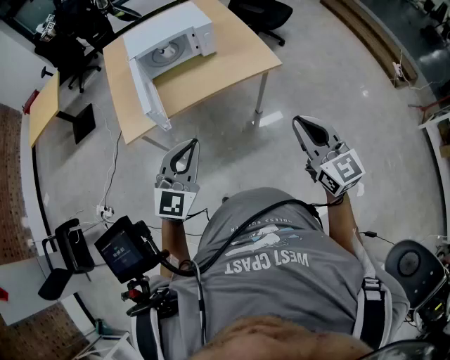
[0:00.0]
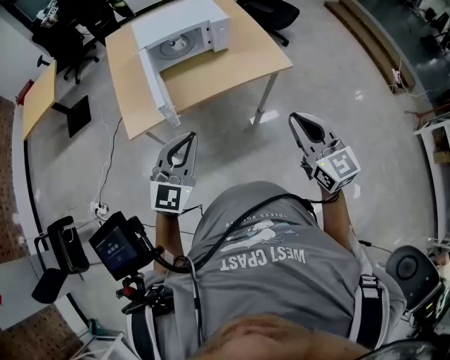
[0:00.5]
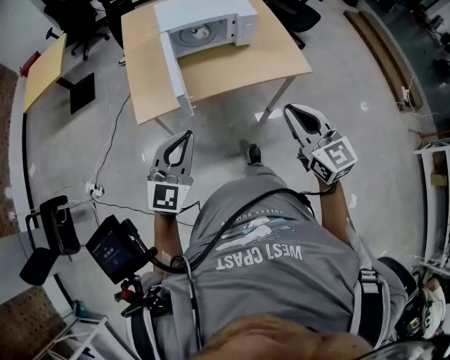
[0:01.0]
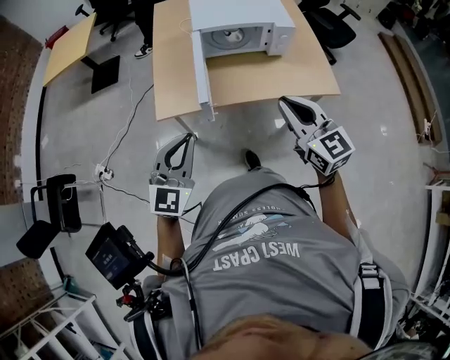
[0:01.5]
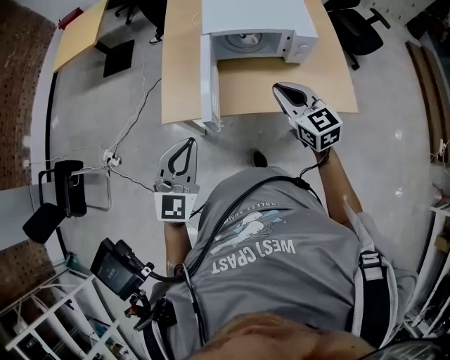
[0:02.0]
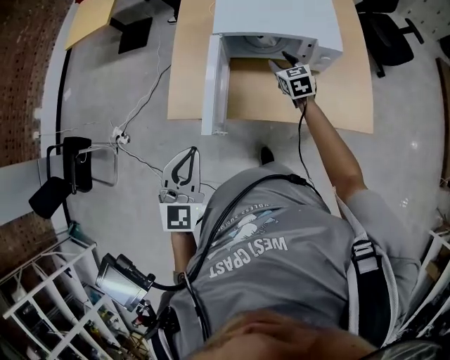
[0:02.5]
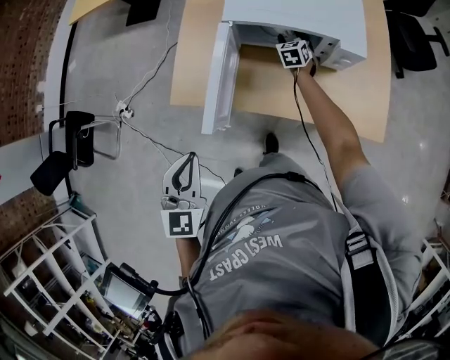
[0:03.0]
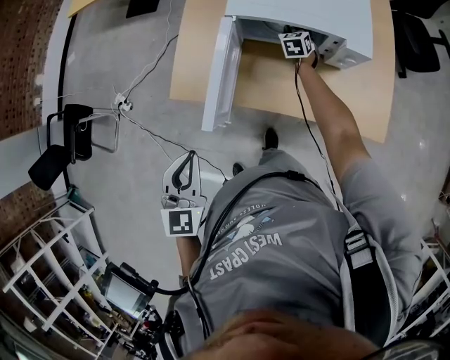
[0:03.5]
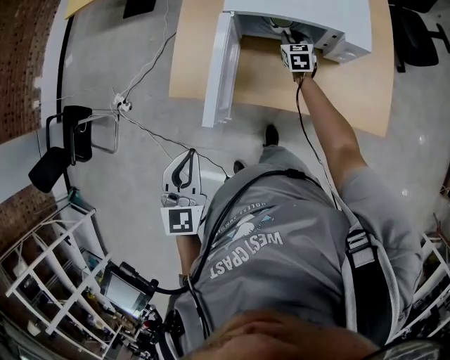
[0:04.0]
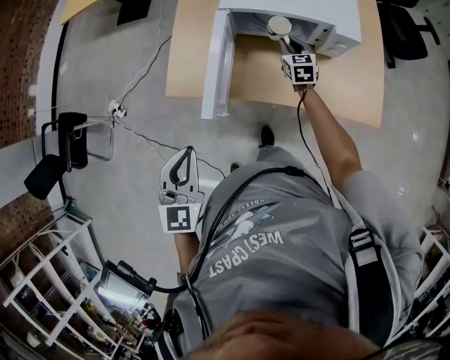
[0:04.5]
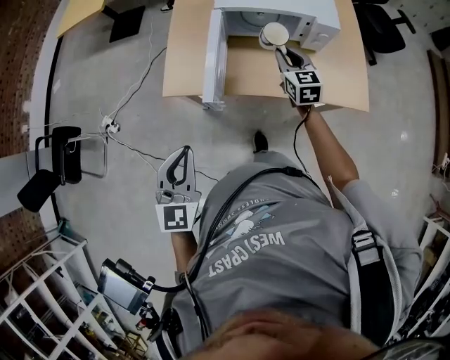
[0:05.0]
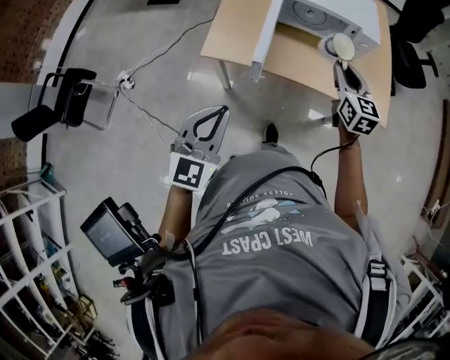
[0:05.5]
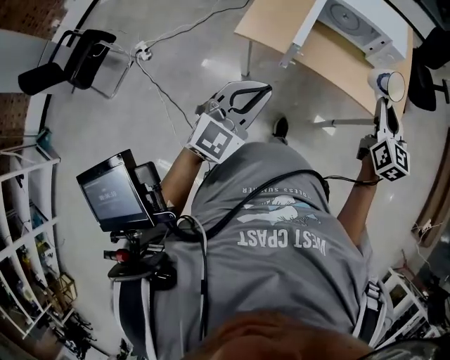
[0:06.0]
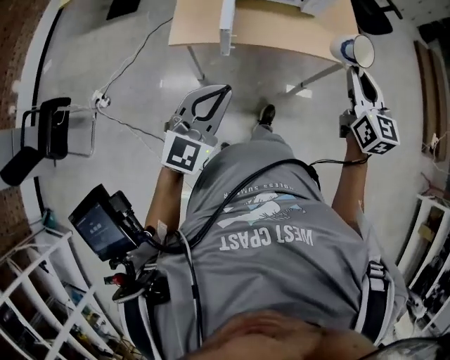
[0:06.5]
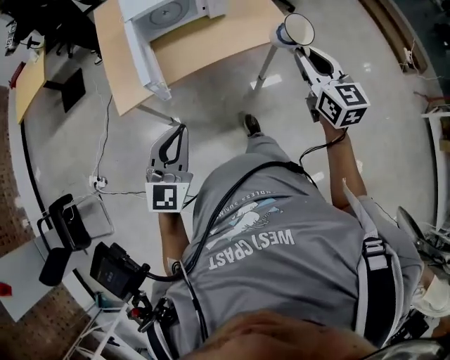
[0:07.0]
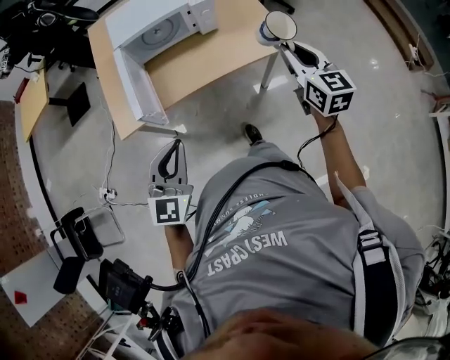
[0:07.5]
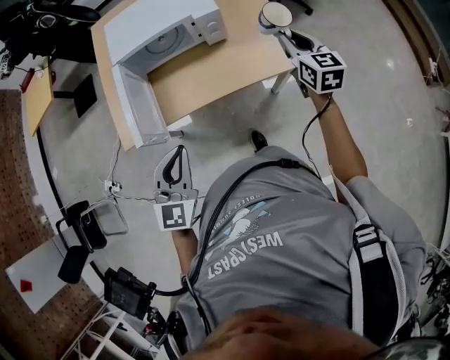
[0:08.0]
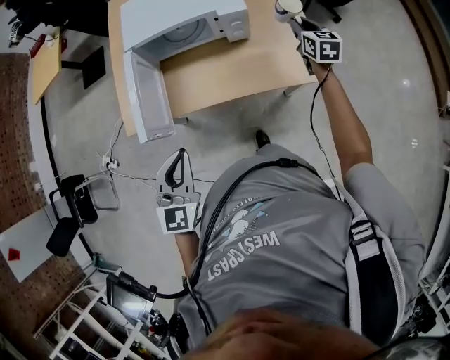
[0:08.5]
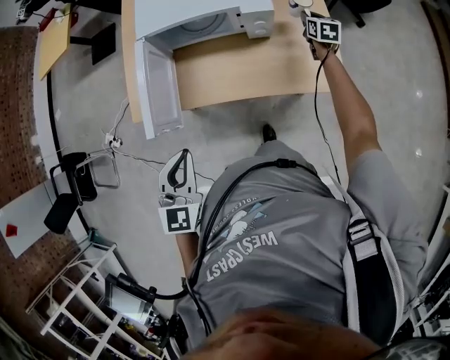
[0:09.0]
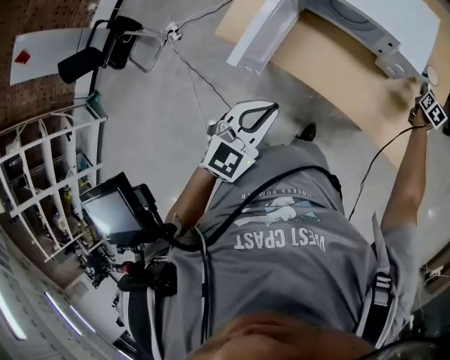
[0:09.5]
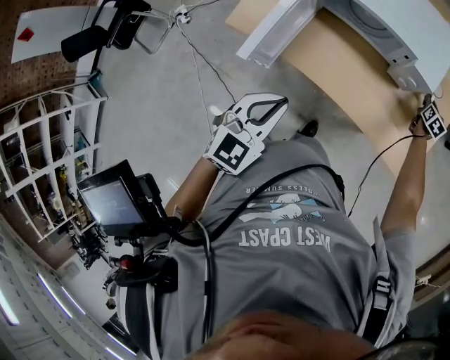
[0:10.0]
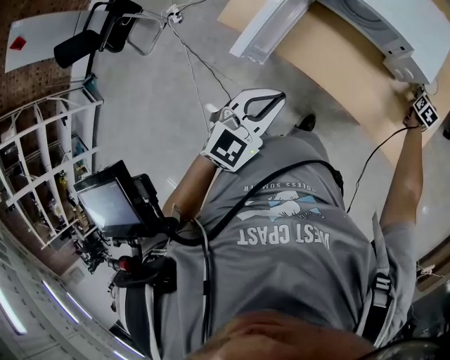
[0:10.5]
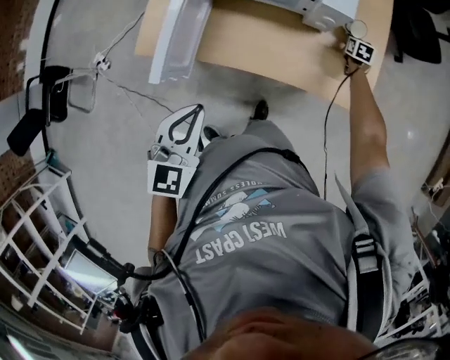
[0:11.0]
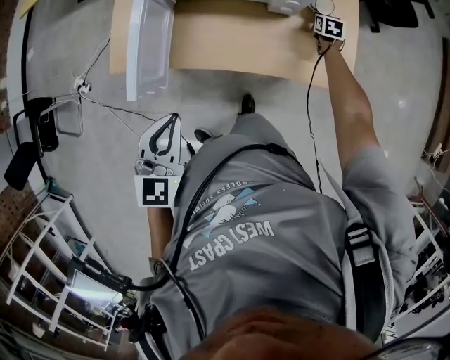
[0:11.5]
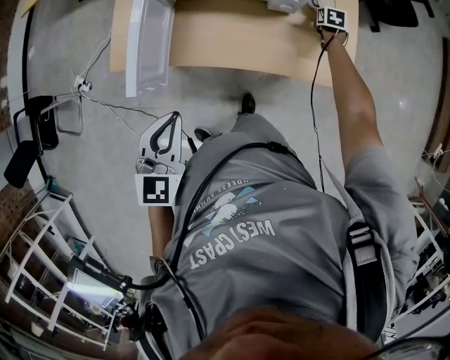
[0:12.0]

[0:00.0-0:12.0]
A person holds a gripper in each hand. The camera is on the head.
0:00.0 to 0:02.0: The left gripper shifts by some 30 cm, and rotates some 30 degrees; the right gripper moves approximately 50 cm, and swivels roughly 30 degrees.
0:02.0 to 0:04.0: The left gripper heads forward, covering roughly 10 cm, and changes its angle by roughly 30 degrees. Meanwhile the right gripper shifts approximately 40 cm forward and downward, swivels roughly 20 degrees, and opens and closes again.
0:04.0 to 0:06.0: The left gripper moves backward, about 25 cm, and changes its angle by some 30 degrees. The right gripper goes roughly 60 cm backward and upward, and changes its angle by roughly 20 degrees.
0:06.0 to 0:08.0: The left gripper moves forward and to the right, about 30 cm. The right gripper goes roughly 40 cm to the right and forward.
0:08.0 to 0:10.0: The left gripper moves forward, about 10 cm, and turns by approximately 30 degrees. Meanwhile the right gripper goes roughly 50 cm forward and downward, and rotates roughly 30 degrees.
0:10.0 to 0:12.0: The right gripper reaches approximately 10 cm to the left, then returns.

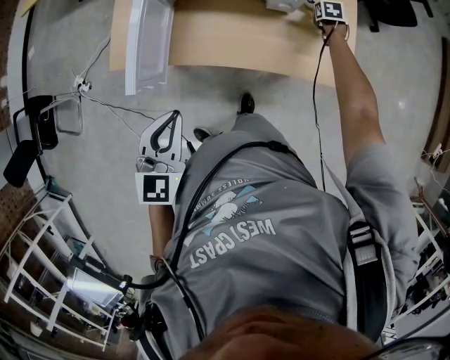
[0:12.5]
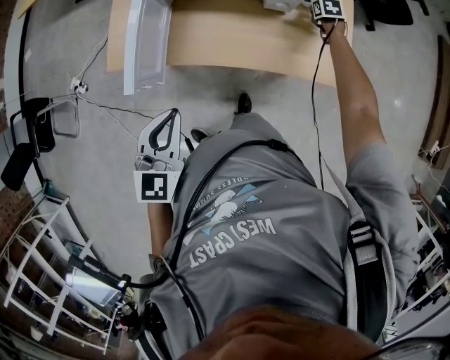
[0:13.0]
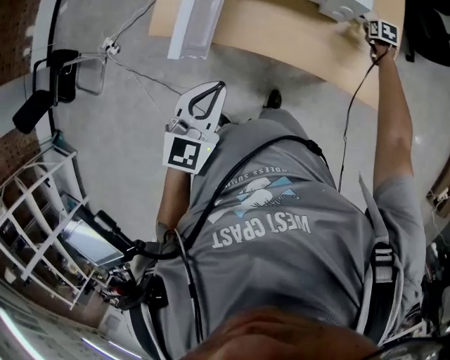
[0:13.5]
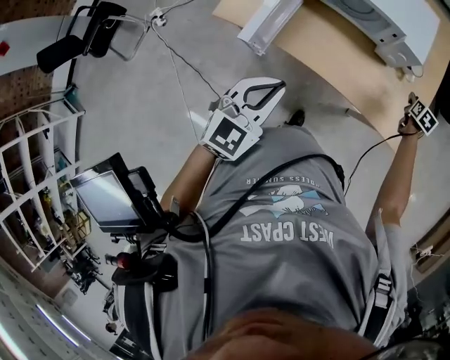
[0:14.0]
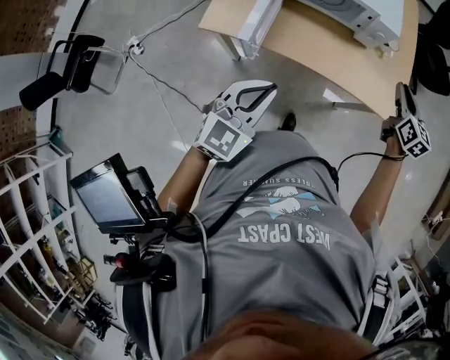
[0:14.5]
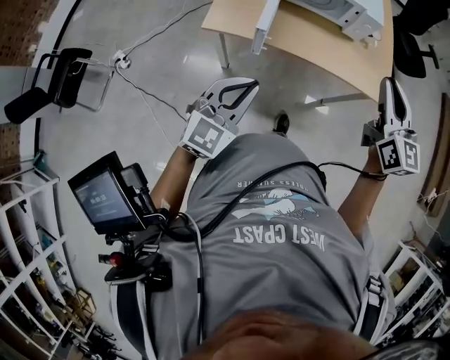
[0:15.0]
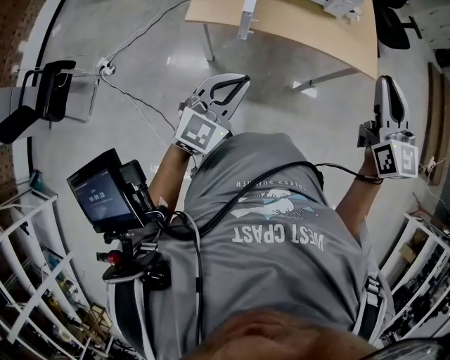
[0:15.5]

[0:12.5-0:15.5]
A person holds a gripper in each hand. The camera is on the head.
0:12.5 to 0:14.0: The right gripper shifts about 15 cm backward. Meanwhile the left gripper changes place by some 5 cm.
0:14.0 to 0:15.5: The left gripper travels backward and to the left by about 30 cm, and swivels some 20 degrees, while the right gripper goes about 70 cm backward, upward and to the left, and tips its fingers upward by approximately 50 degrees.

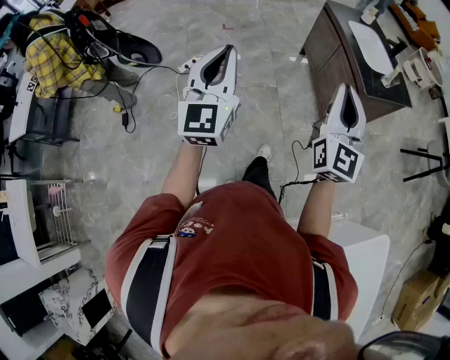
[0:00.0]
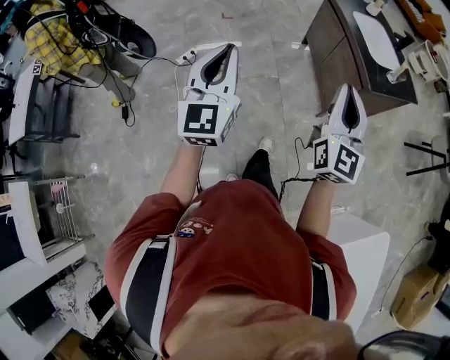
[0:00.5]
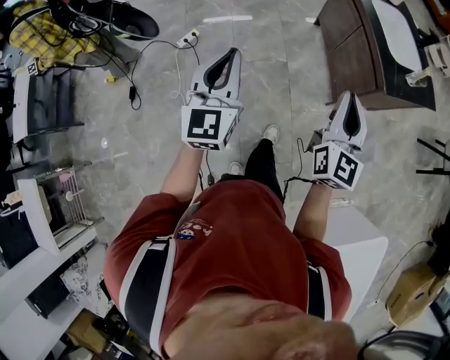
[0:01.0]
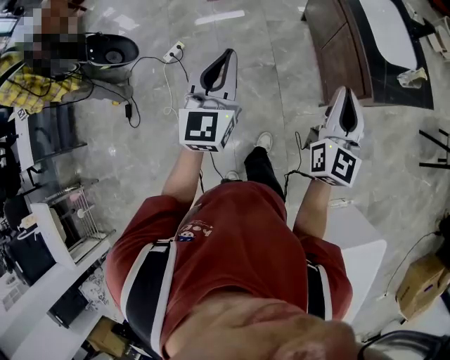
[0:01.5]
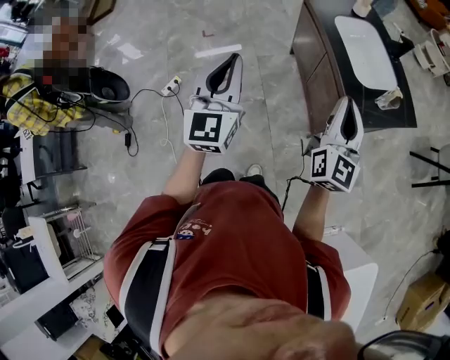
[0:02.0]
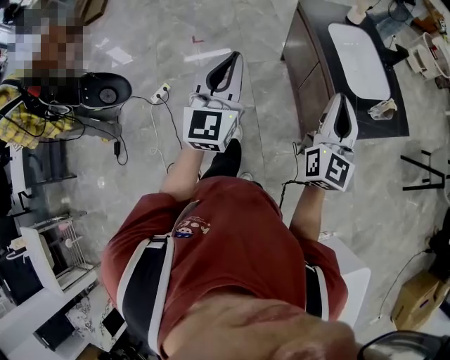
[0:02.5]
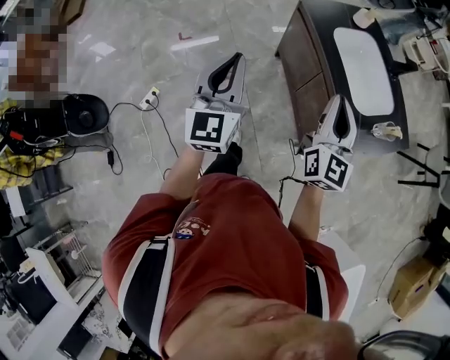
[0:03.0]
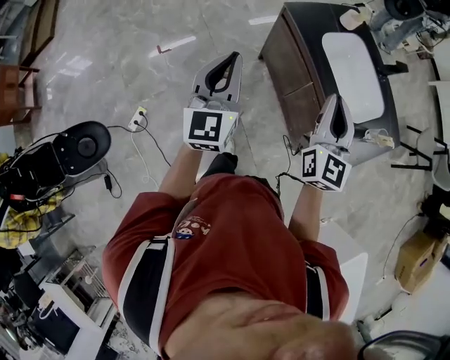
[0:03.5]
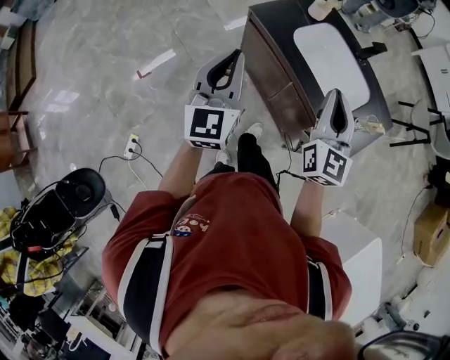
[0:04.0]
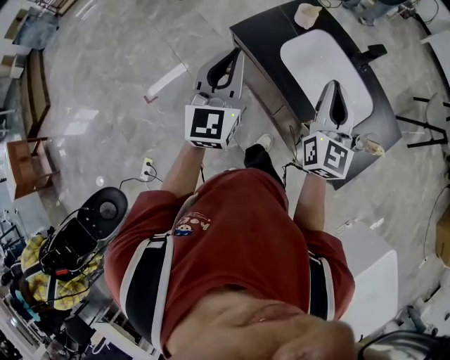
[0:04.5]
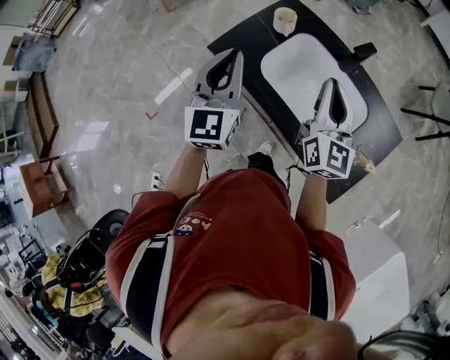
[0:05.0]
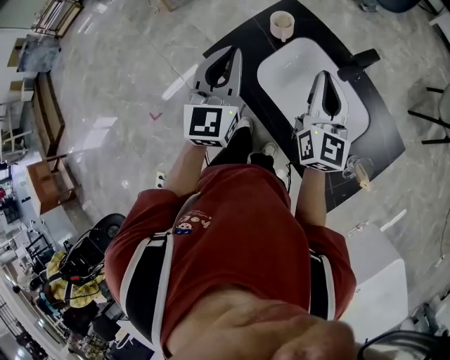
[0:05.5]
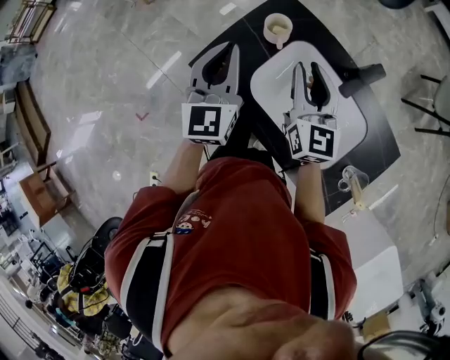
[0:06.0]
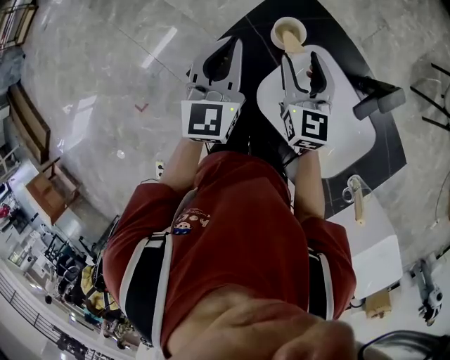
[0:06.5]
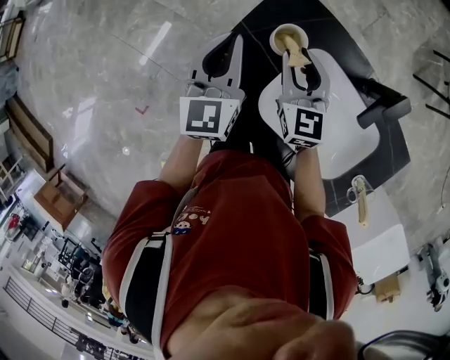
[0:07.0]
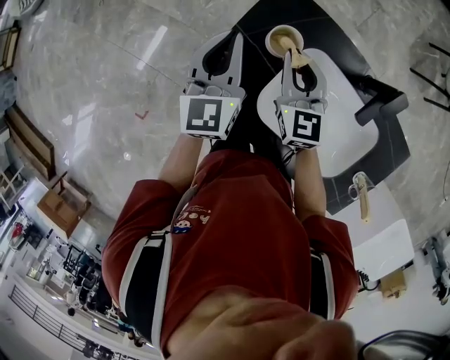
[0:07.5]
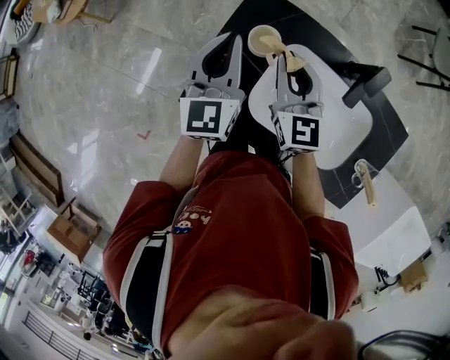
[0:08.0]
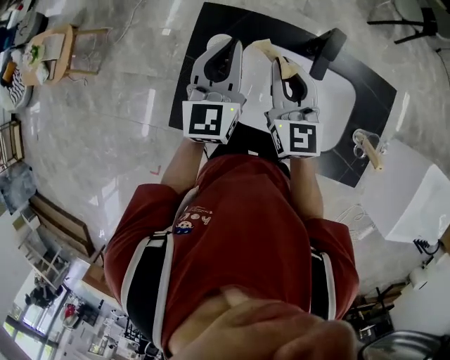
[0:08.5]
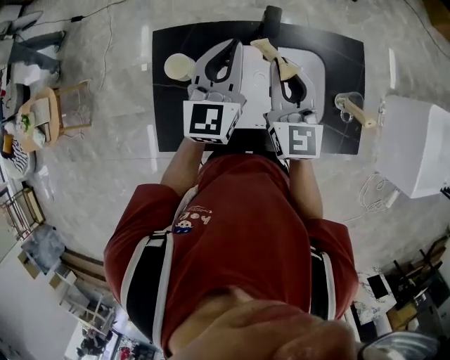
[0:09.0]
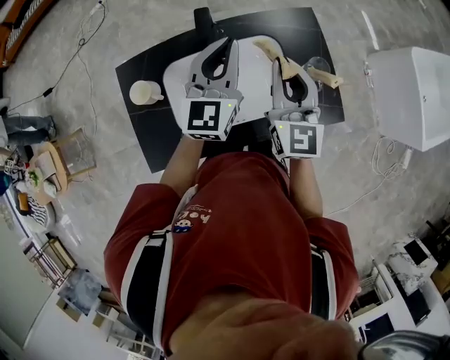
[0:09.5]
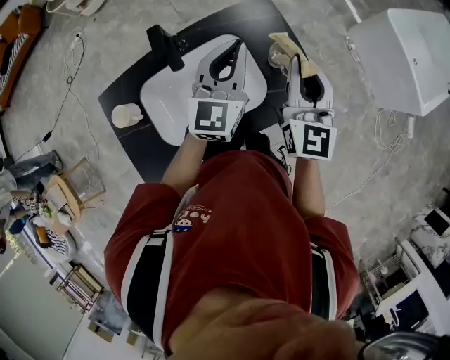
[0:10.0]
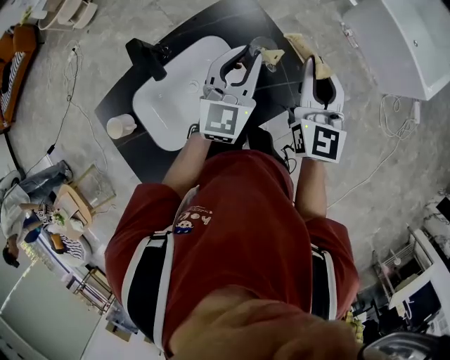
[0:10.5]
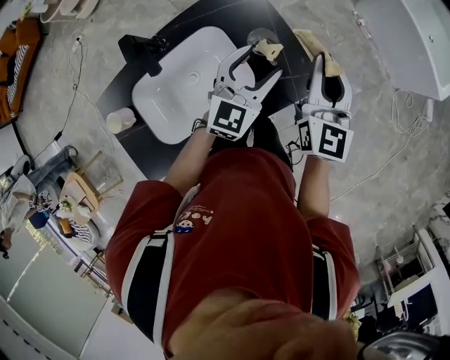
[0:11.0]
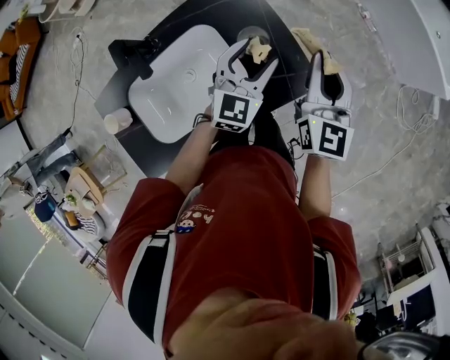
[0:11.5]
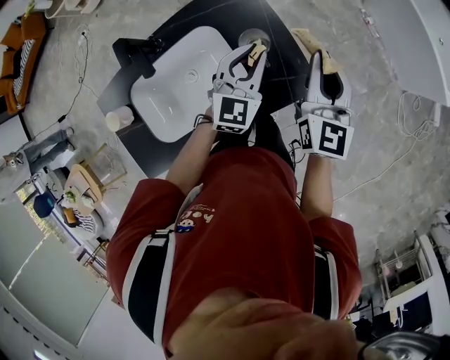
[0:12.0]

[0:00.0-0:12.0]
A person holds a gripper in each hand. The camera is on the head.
0:00.0 to 0:02.0: Both grippers travel together forward and to the right, some 35 cm.
0:02.0 to 0:04.0: The grippers both shift forward by roughly 30 cm. The left gripper rotates some 20 degrees. The right gripper turns by roughly 20 degrees.
0:04.0 to 0:06.0: Both grippers move forward, roughly 35 cm. The right gripper opens up.
0:06.0 to 0:08.0: The right gripper shifts some 10 cm forward and downward, and opens and closes again, while the left gripper heads forward, covering about 15 cm.
0:08.0 to 0:10.0: The two grippers travel together, about 50 cm. The right gripper rotates approximately 70 degrees; the left gripper swivels approximately 60 degrees.
0:10.0 to 0:12.0: The right gripper heads to the right, downward and forward, covering roughly 15 cm. Meanwhile the left gripper shifts approximately 20 cm to the right and downward, swivels some 20 degrees, and opens and closes again.
